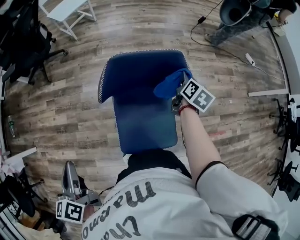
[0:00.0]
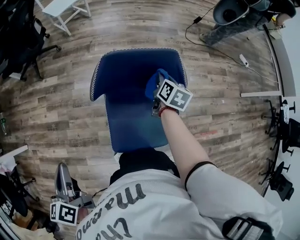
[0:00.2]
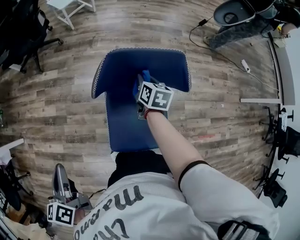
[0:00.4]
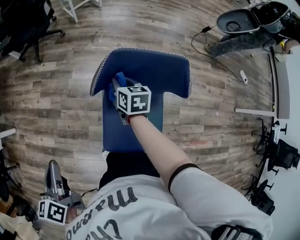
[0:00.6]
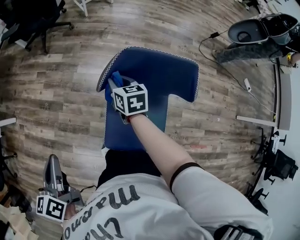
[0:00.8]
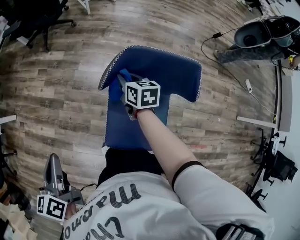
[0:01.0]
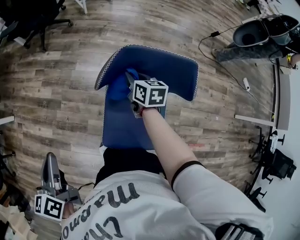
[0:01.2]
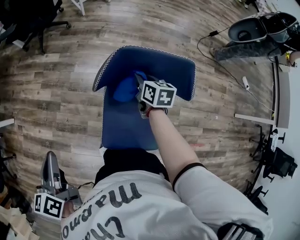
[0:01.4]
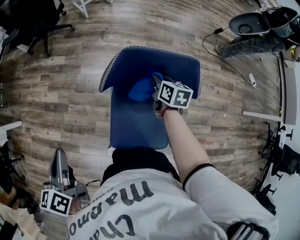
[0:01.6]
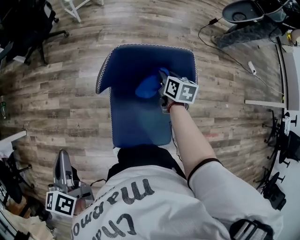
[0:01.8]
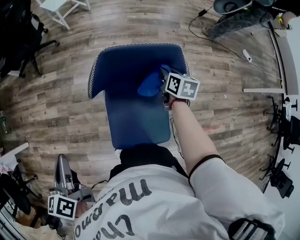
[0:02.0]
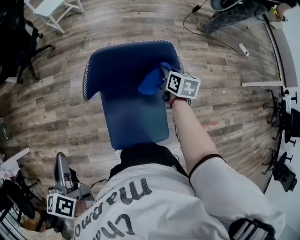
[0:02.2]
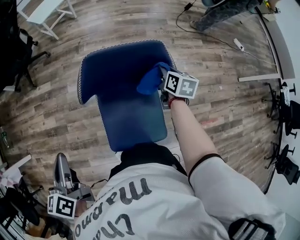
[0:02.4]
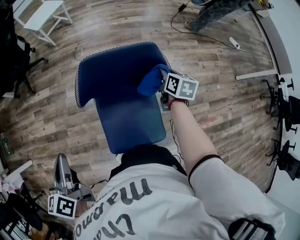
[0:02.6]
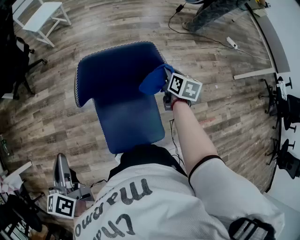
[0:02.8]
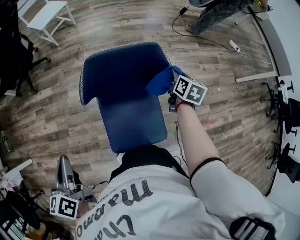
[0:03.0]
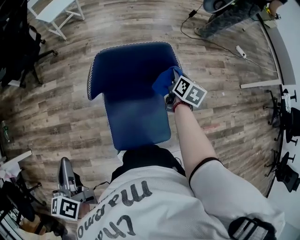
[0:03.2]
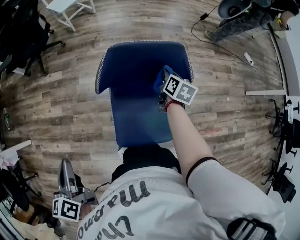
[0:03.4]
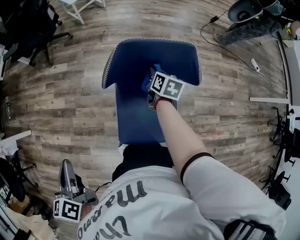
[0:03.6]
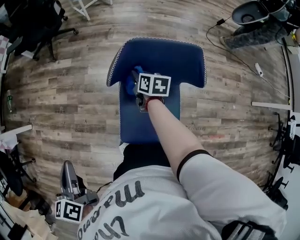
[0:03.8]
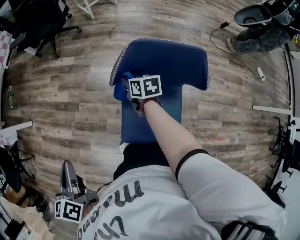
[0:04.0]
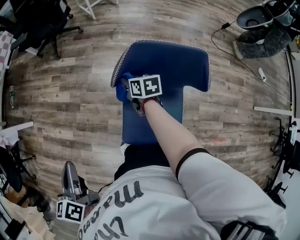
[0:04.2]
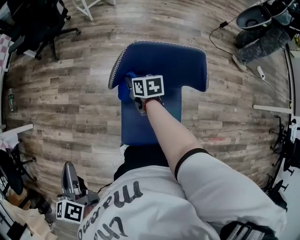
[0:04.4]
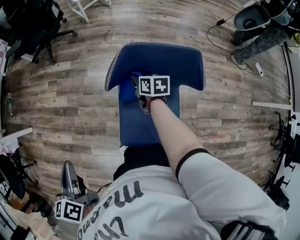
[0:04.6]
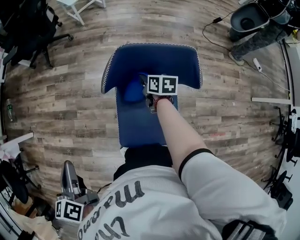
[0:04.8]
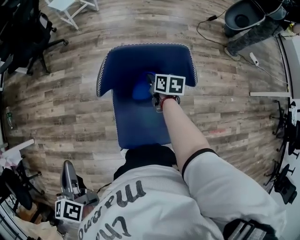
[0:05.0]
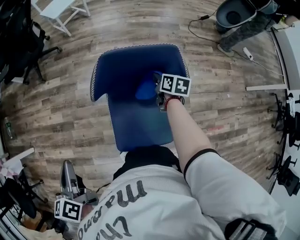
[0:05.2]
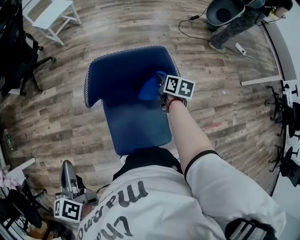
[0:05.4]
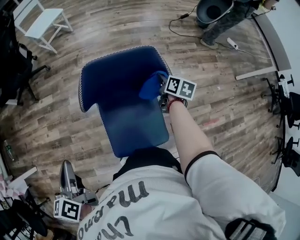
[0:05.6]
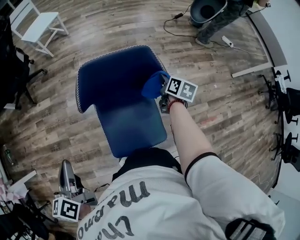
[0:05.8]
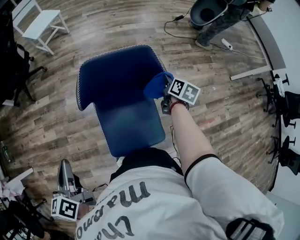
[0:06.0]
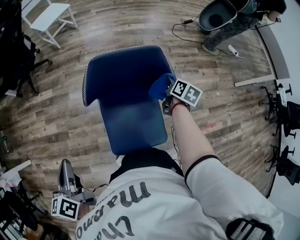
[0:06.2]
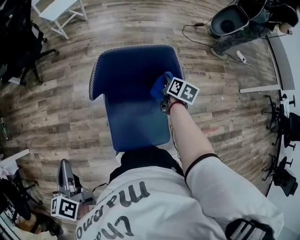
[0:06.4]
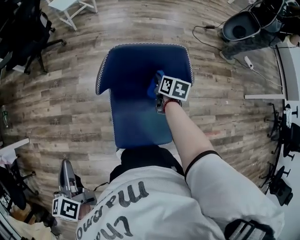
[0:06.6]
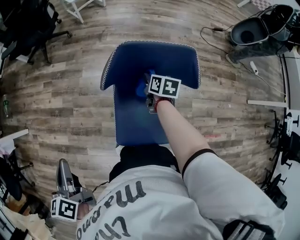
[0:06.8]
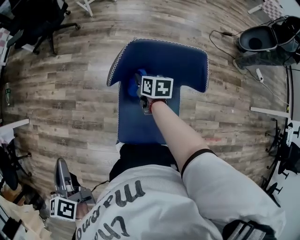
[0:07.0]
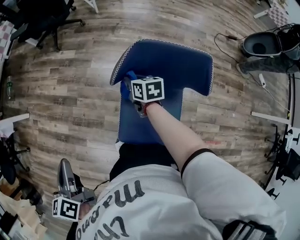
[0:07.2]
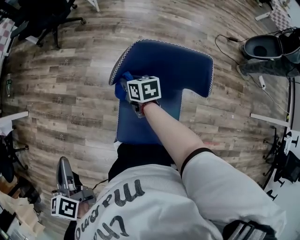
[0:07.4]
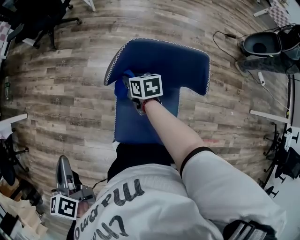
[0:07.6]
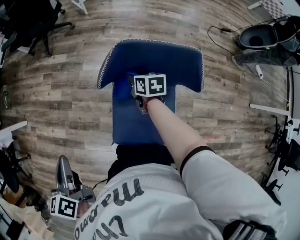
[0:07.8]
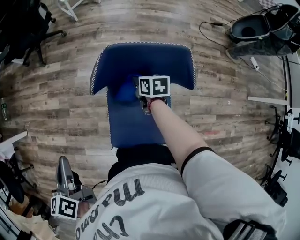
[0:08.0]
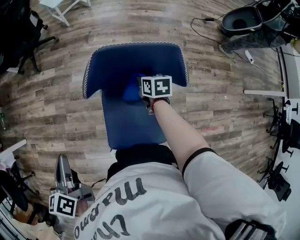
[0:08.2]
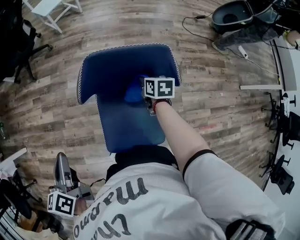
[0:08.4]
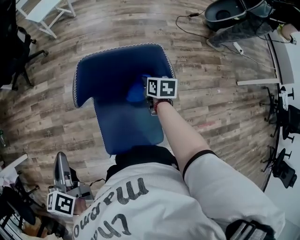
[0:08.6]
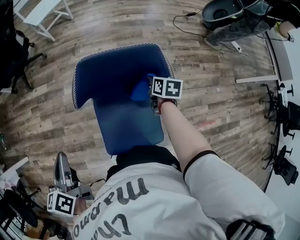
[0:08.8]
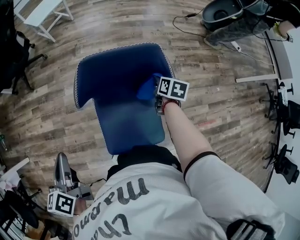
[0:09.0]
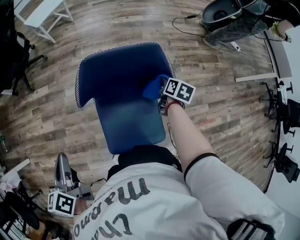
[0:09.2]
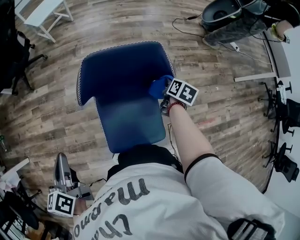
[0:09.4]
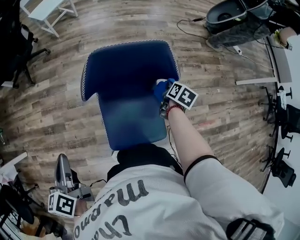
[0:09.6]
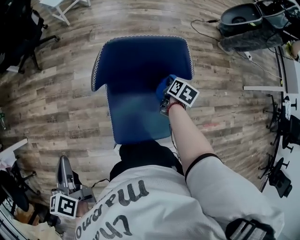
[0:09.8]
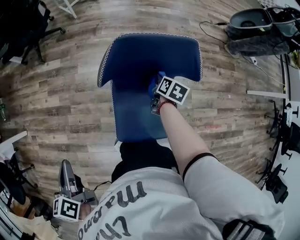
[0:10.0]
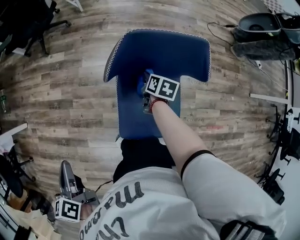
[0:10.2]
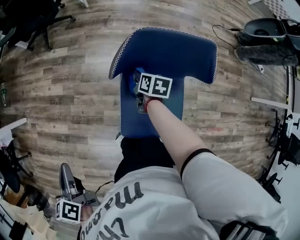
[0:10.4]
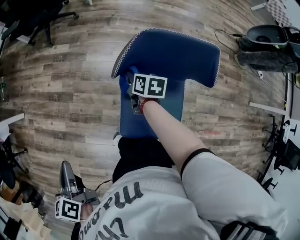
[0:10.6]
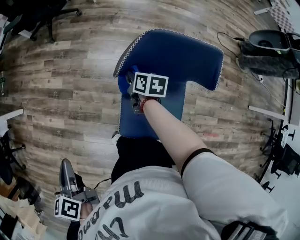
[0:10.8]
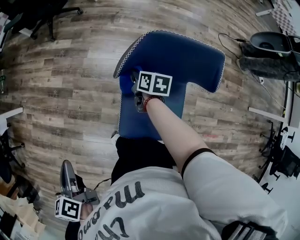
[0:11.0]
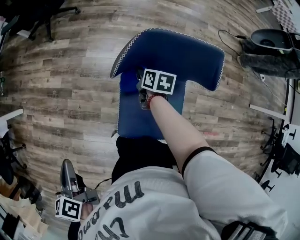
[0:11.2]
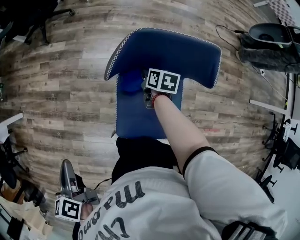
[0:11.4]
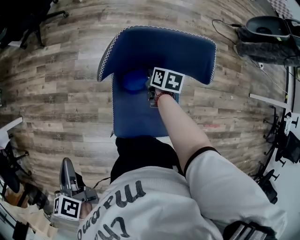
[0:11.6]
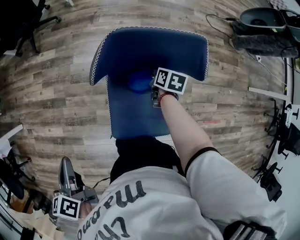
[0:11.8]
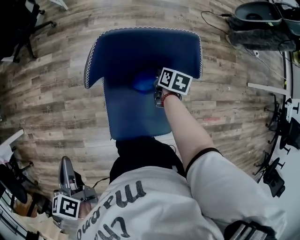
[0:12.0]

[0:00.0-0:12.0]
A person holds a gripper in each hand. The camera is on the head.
0:00.0 to 0:01.6: The right gripper changes its angle by approximately 40 degrees.
0:01.6 to 0:03.0: The right gripper heads to the right, covering approximately 20 cm, and turns by roughly 30 degrees, while the left gripper ends up roughly 5 cm from where it was.
0:03.0 to 0:04.4: The left gripper changes place by some 10 cm; the right gripper ends up approximately 40 cm from where it was, and turns by roughly 50 degrees.
0:04.4 to 0:06.0: The left gripper changes place by approximately 10 cm, and changes its angle by roughly 20 degrees. Meanwhile the right gripper shifts by roughly 35 cm, and swivels about 50 degrees.
0:06.0 to 0:07.6: The right gripper shifts by approximately 35 cm, and changes its angle by some 50 degrees. Meanwhile the left gripper ends up about 10 cm from where it was, and changes its angle by some 20 degrees.
0:07.6 to 0:09.0: The right gripper changes place by some 30 cm, and turns by roughly 40 degrees, while the left gripper ends up roughly 10 cm from where it was, and rotates approximately 20 degrees.
0:09.0 to 0:10.4: The left gripper ends up about 20 cm from where it was, and turns by approximately 20 degrees; the right gripper moves some 25 cm.
0:10.4 to 0:12.0: The left gripper travels to the right and forward by some 10 cm. The right gripper moves to the right, about 20 cm.

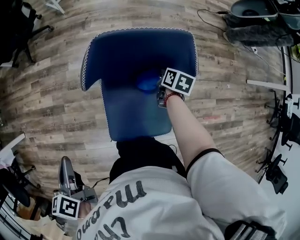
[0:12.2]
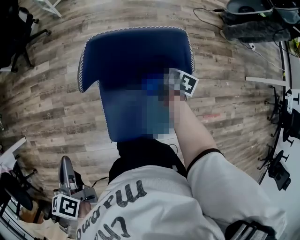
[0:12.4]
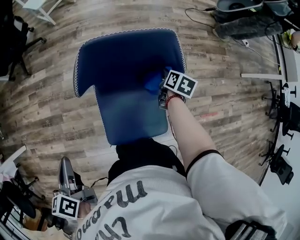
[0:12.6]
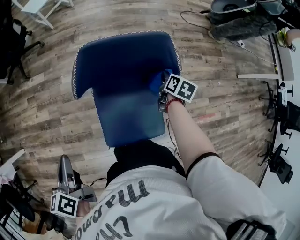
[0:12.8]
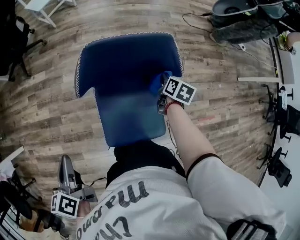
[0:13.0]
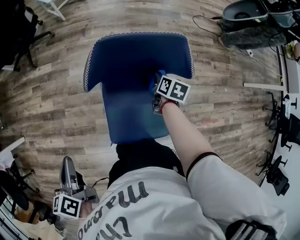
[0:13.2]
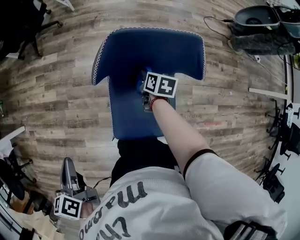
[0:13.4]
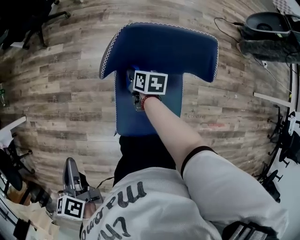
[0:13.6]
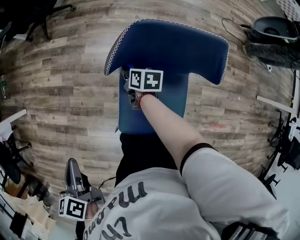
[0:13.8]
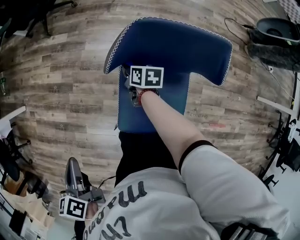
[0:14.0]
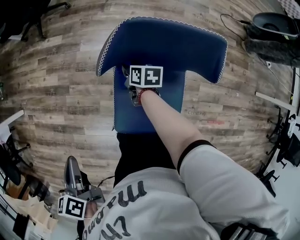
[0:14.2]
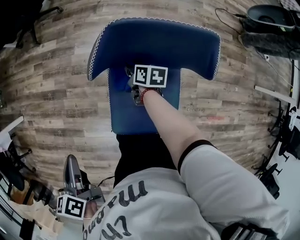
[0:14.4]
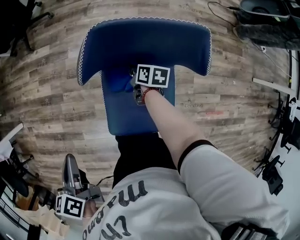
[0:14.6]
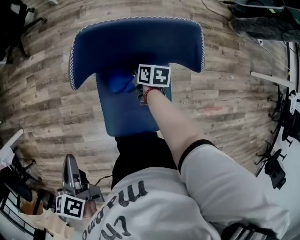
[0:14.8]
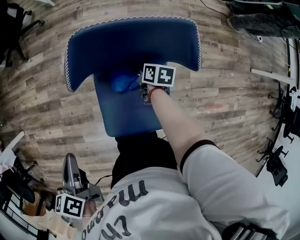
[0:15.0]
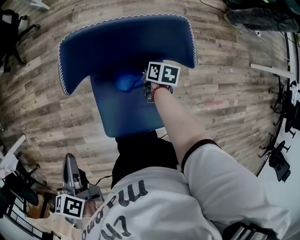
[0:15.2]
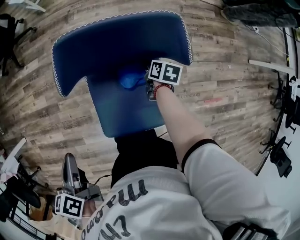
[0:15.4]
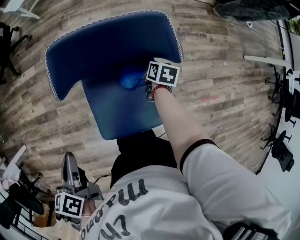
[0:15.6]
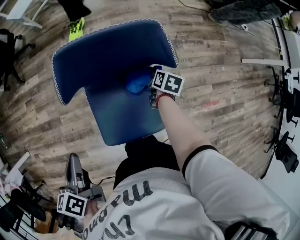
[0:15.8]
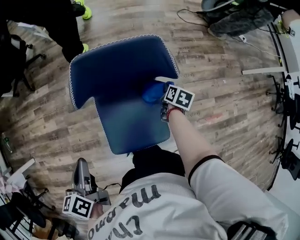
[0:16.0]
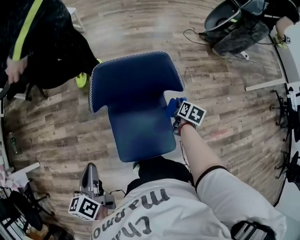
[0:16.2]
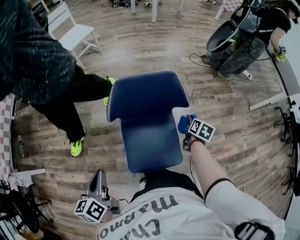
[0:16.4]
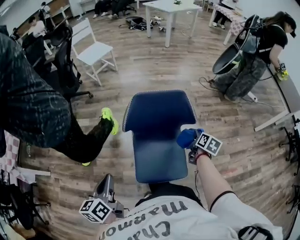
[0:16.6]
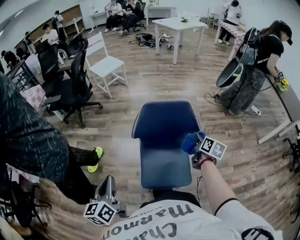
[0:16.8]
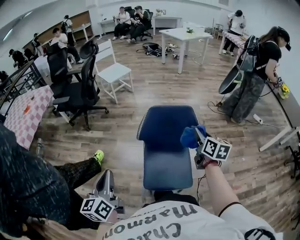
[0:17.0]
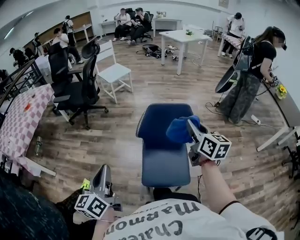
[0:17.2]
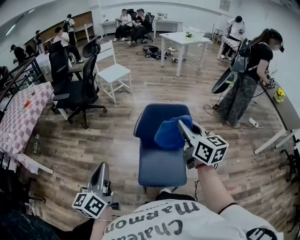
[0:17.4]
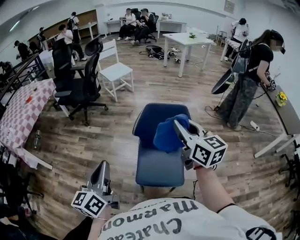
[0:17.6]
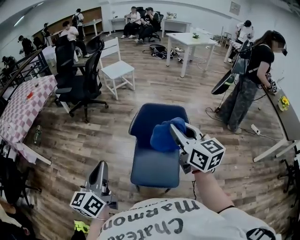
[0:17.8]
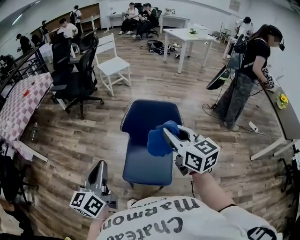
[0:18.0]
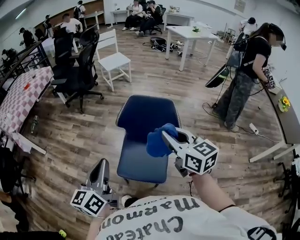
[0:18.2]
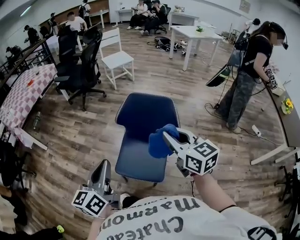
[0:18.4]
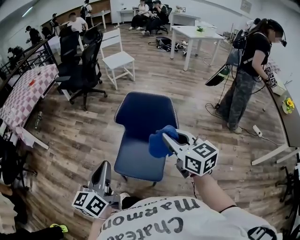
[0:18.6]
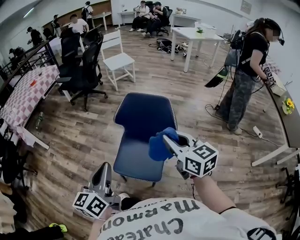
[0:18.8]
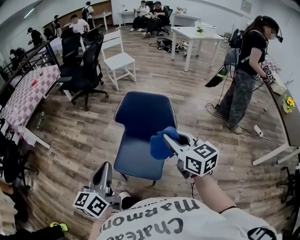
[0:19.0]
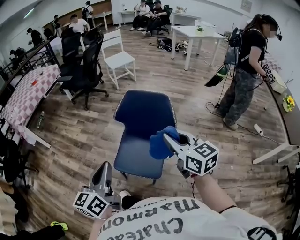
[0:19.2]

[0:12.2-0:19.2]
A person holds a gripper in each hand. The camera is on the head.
0:12.2 to 0:13.6: The left gripper changes place by approximately 5 cm; the right gripper shifts by some 20 cm, and rotates about 20 degrees.
0:13.6 to 0:15.0: The left gripper is displaced to the right by about 10 cm. The right gripper travels to the right and downward by roughly 15 cm.
0:15.0 to 0:16.4: The right gripper shifts by roughly 25 cm, and swivels approximately 30 degrees; the left gripper moves upward, about 5 cm, and rotates approximately 20 degrees.
0:16.4 to 0:17.8: The right gripper goes about 40 cm upward, and tilts its fingers about 40 degrees upward. The left gripper travels upward by some 15 cm, and changes its angle by some 30 degrees.
0:17.8 to 0:19.2: The right gripper shifts about 15 cm backward, to the right and downward. Meanwhile the left gripper moves to the right and backward, roughly 20 cm.

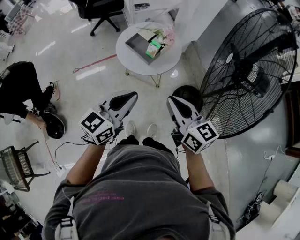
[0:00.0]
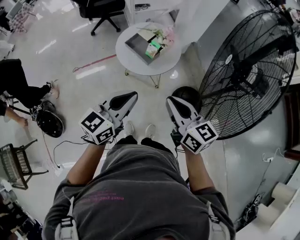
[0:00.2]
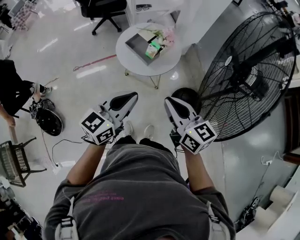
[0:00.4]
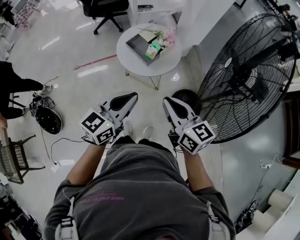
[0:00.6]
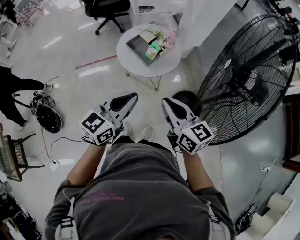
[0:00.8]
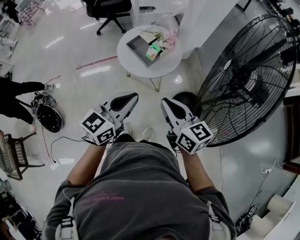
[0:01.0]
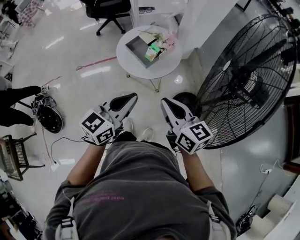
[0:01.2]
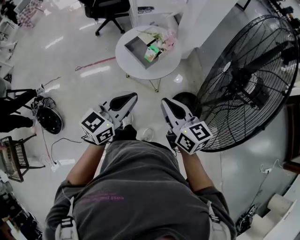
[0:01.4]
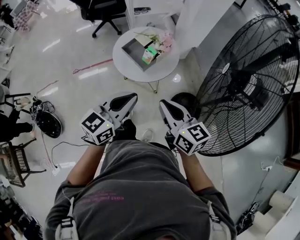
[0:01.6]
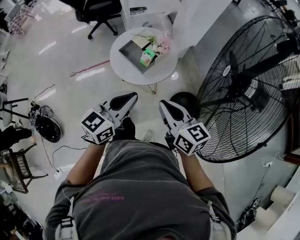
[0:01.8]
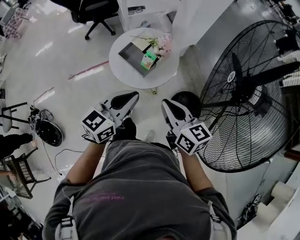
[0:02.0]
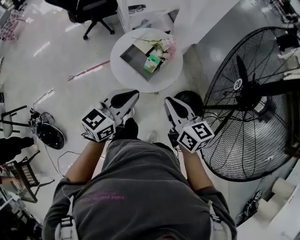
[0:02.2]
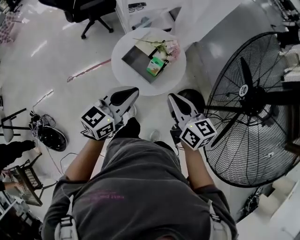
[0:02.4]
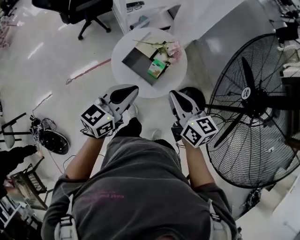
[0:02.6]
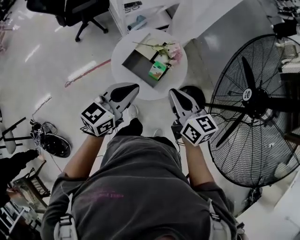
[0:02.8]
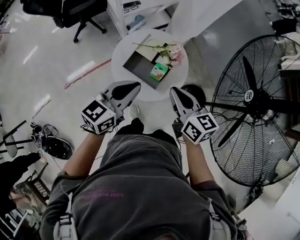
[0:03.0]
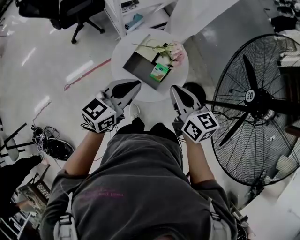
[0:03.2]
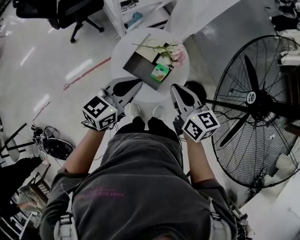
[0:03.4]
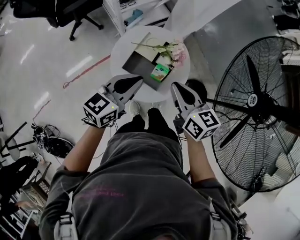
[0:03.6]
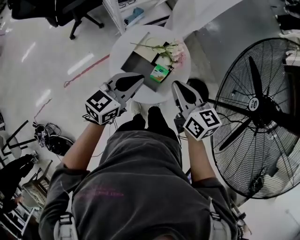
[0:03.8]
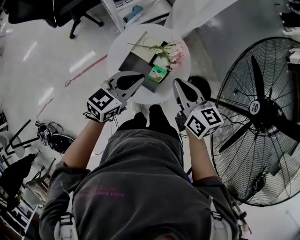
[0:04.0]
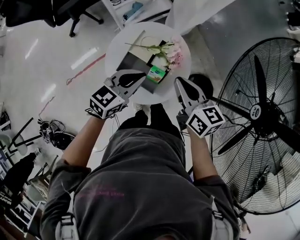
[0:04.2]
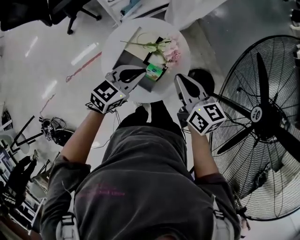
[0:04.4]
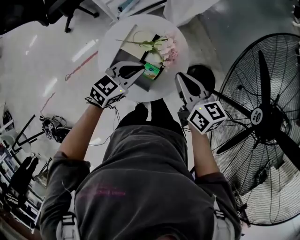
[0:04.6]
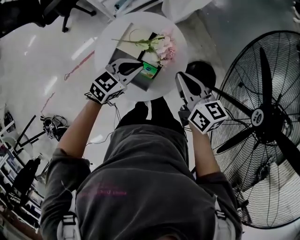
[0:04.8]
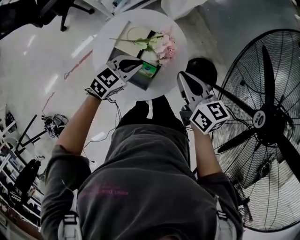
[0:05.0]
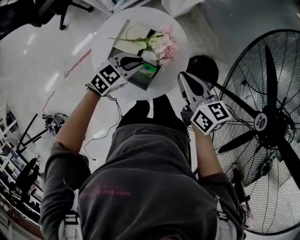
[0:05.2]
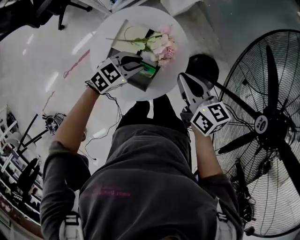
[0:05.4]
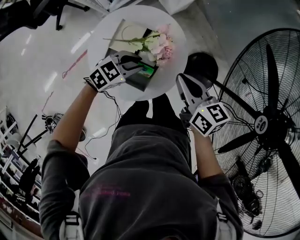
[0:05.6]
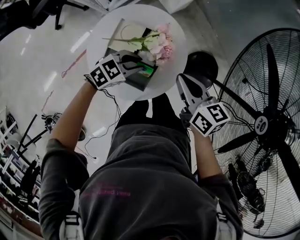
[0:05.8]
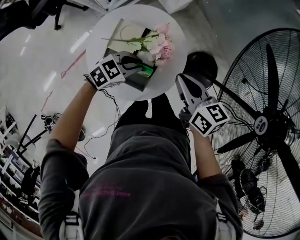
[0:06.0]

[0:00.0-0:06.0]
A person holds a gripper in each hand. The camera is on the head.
0:00.0 to 0:01.6: The right gripper moves about 5 cm, while the left gripper shifts by about 5 cm.
0:01.6 to 0:03.0: The grippers both shift forward and to the left by approximately 25 cm.
0:03.0 to 0:04.4: The left gripper heads forward, downward and to the right, covering roughly 20 cm, and rotates about 20 degrees; the right gripper moves forward and downward, roughly 15 cm.
0:04.4 to 0:06.0: The left gripper moves downward, roughly 15 cm, and changes its angle by approximately 30 degrees; the right gripper goes approximately 10 cm downward.
